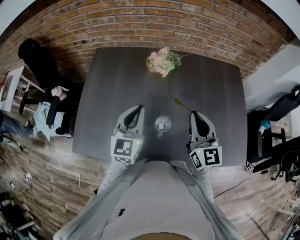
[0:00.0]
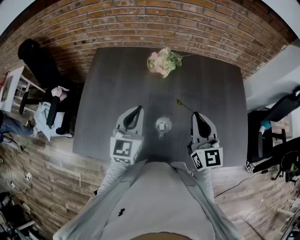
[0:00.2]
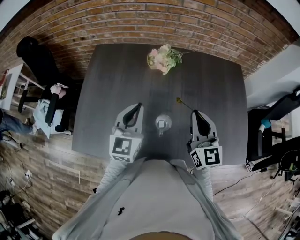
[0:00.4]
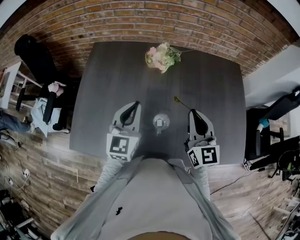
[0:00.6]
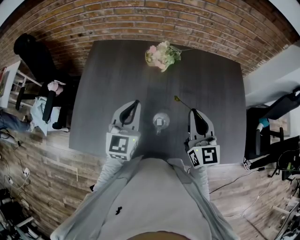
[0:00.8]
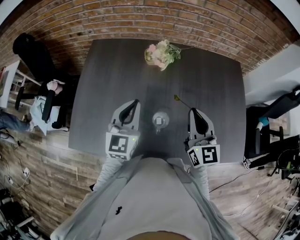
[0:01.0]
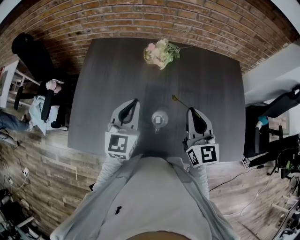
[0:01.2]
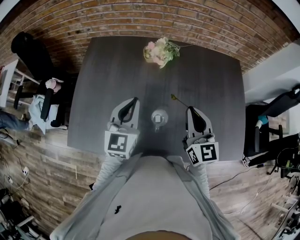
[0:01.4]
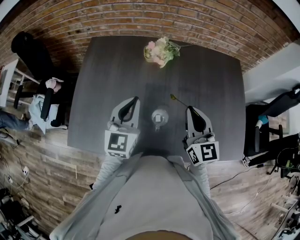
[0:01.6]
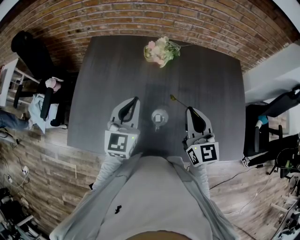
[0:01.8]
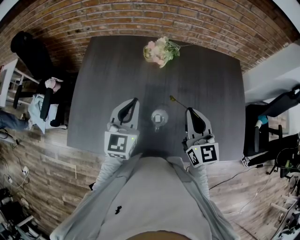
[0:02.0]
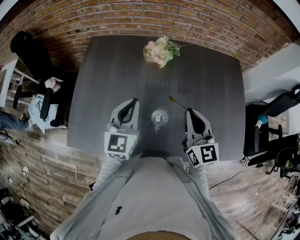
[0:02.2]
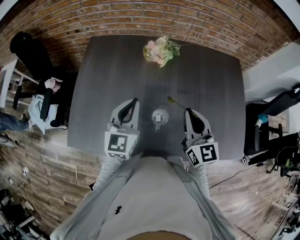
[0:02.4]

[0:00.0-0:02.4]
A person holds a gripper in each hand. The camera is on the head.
0:00.0 to 0:02.4: The grippers make only small movements.

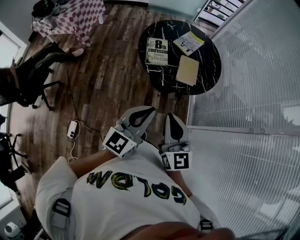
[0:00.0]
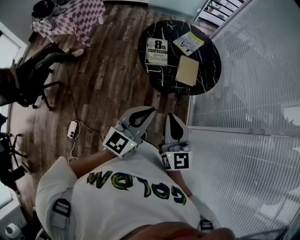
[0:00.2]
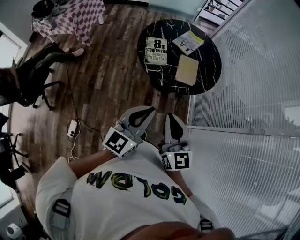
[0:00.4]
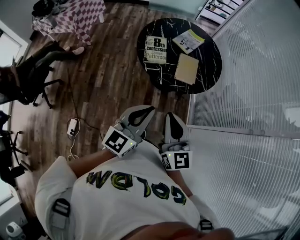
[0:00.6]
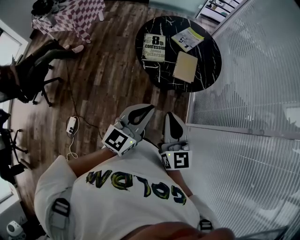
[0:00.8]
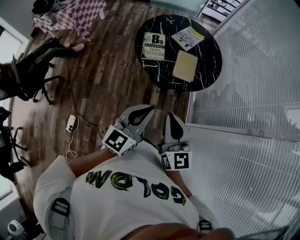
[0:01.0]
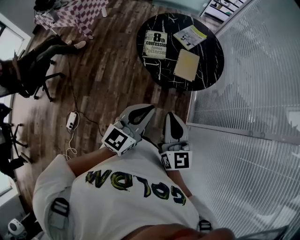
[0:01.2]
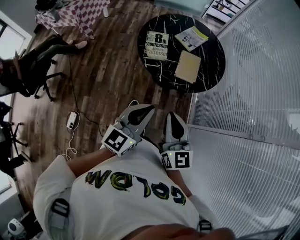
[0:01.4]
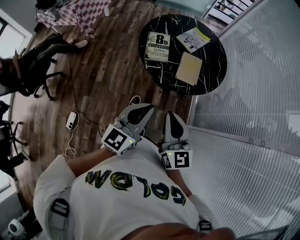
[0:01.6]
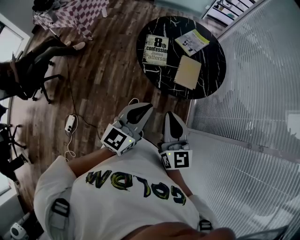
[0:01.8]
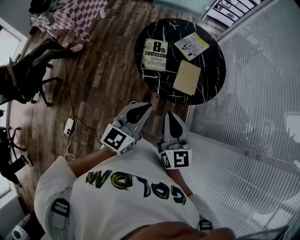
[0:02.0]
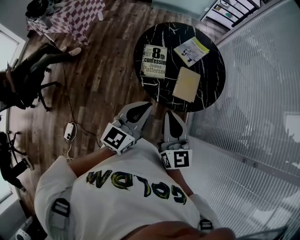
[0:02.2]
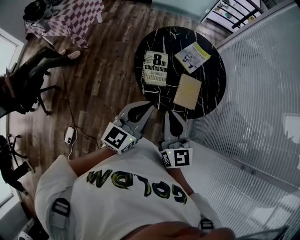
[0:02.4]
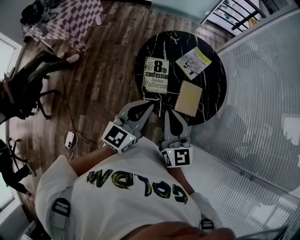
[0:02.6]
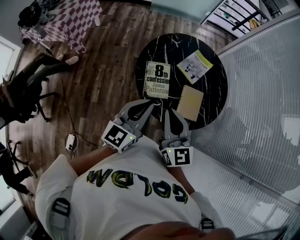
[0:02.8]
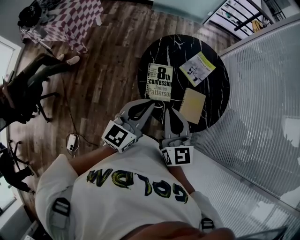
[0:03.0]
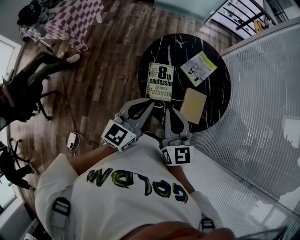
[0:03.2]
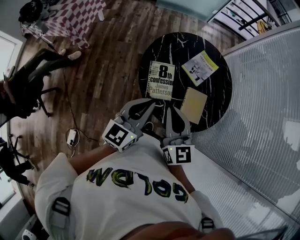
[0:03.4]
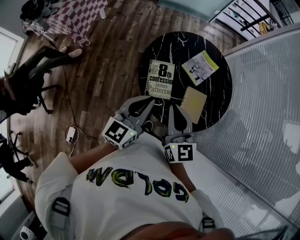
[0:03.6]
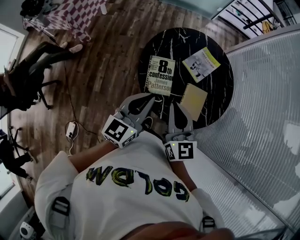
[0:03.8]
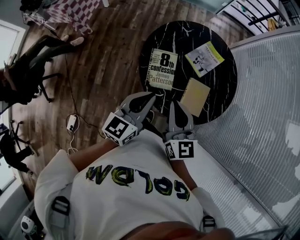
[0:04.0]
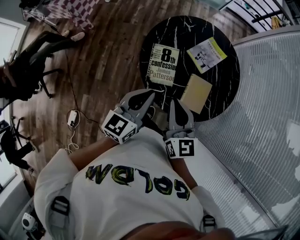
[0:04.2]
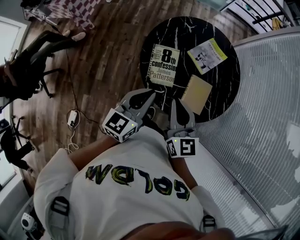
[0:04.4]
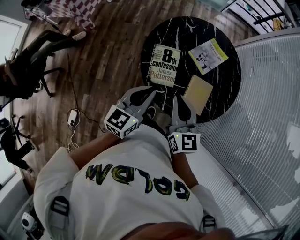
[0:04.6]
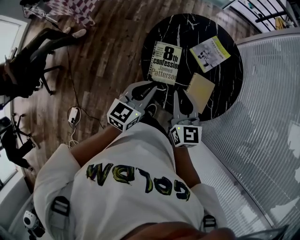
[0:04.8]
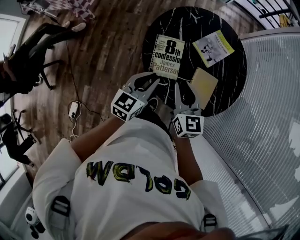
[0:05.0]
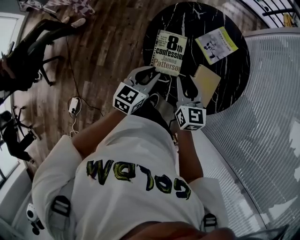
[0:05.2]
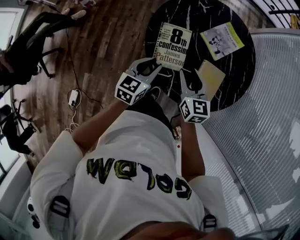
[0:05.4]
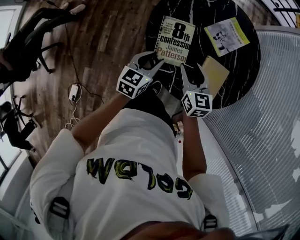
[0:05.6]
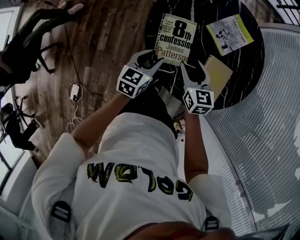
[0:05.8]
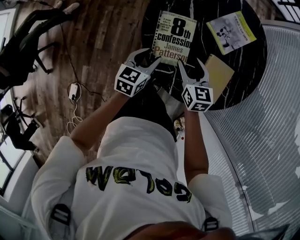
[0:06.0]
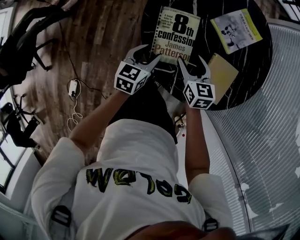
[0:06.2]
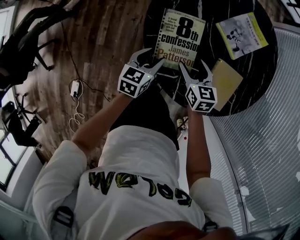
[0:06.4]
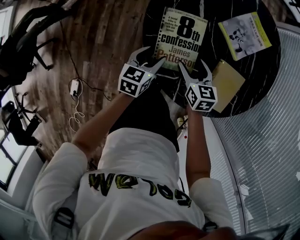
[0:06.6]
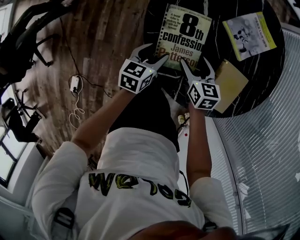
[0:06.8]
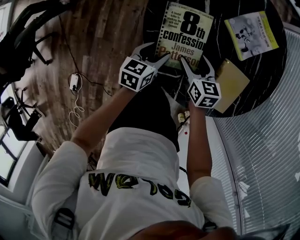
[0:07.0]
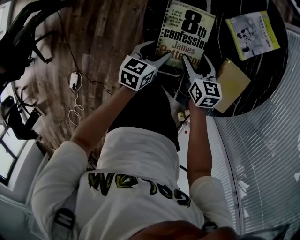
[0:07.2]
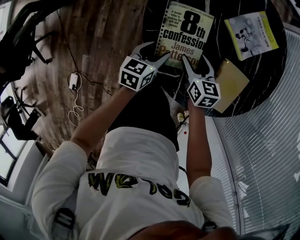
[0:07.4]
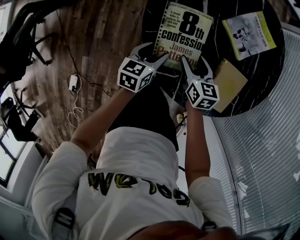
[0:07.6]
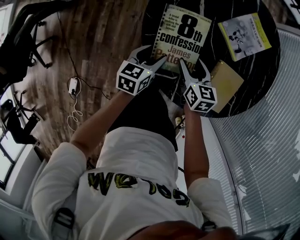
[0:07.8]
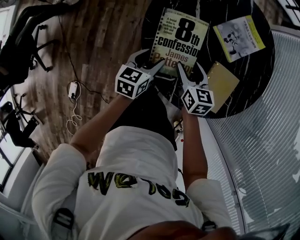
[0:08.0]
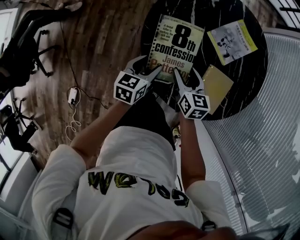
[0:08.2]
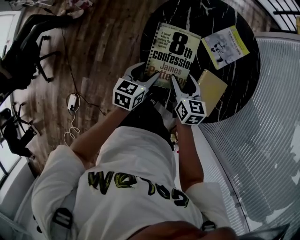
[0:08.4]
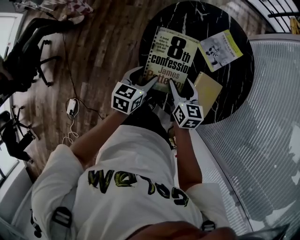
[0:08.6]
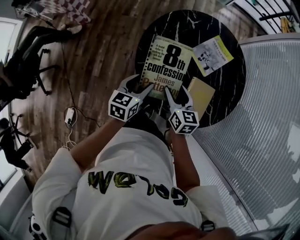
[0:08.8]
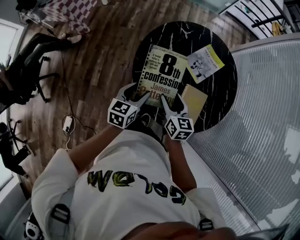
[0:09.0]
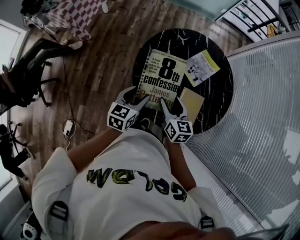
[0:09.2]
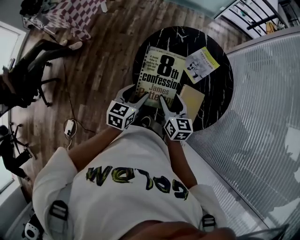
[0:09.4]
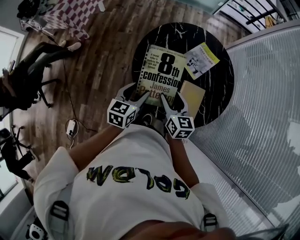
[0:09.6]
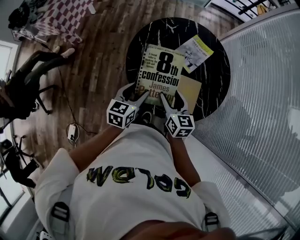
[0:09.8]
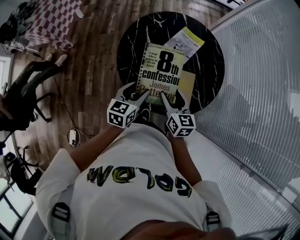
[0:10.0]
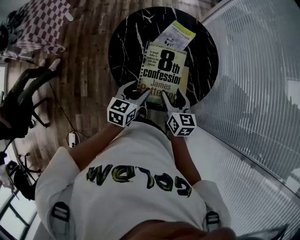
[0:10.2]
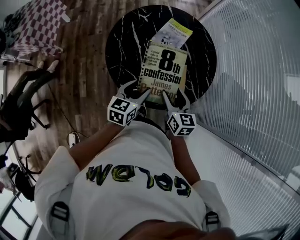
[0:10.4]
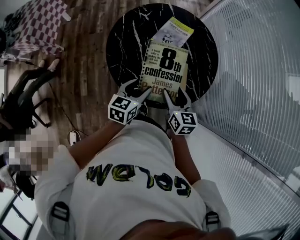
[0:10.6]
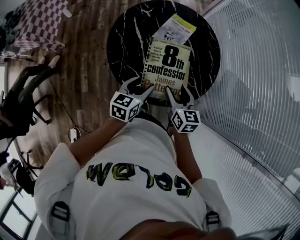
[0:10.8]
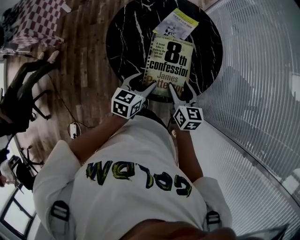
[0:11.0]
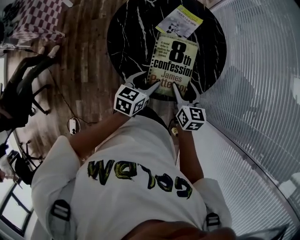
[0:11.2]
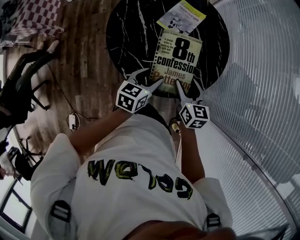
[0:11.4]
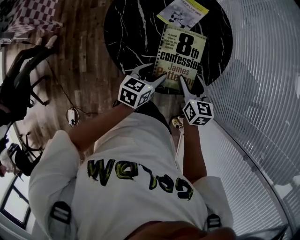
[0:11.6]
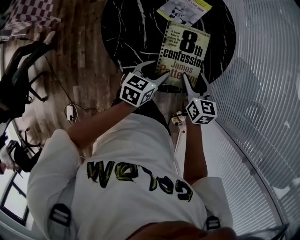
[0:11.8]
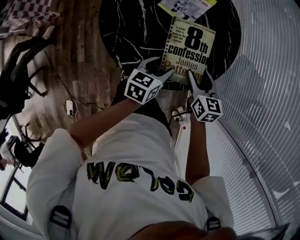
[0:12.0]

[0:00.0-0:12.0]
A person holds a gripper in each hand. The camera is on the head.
0:00.0 to 0:01.6: The left gripper ends up approximately 10 cm from where it was. Meanwhile the right gripper is displaced to the right by approximately 5 cm.
0:01.6 to 0:03.0: The grippers both shift forward and to the left by some 35 cm.
0:03.0 to 0:04.4: The left gripper moves downward, some 5 cm. The right gripper changes place by some 5 cm.
0:04.4 to 0:06.0: The right gripper travels downward and forward by roughly 30 cm, rotates roughly 20 degrees, and opens. The left gripper heads downward, covering about 25 cm, rotates approximately 20 degrees, and opens up.
0:06.0 to 0:07.6: The two grippers go approximately 10 cm downward.
0:07.6 to 0:09.0: The grippers both shift upward by about 20 cm.
0:09.0 to 0:10.4: The left gripper travels to the right by roughly 10 cm; the right gripper heads to the right and backward, covering about 15 cm.
0:10.4 to 0:12.0: The right gripper travels downward, to the right and forward by some 15 cm. The left gripper shifts some 15 cm downward and to the right.

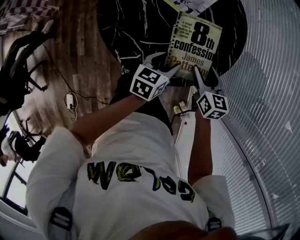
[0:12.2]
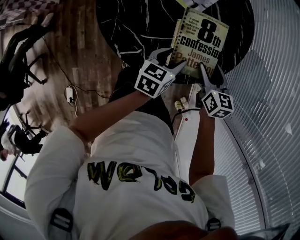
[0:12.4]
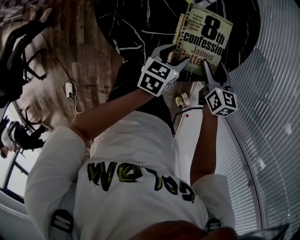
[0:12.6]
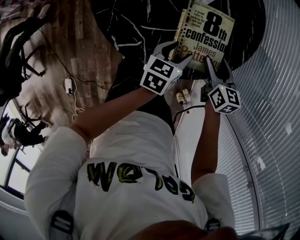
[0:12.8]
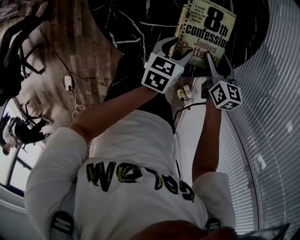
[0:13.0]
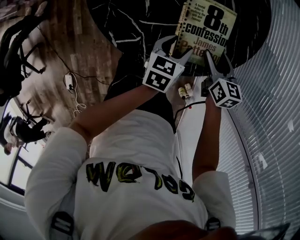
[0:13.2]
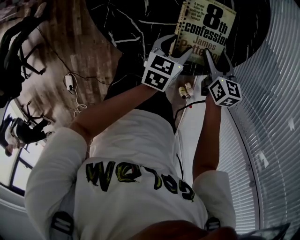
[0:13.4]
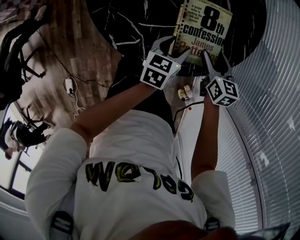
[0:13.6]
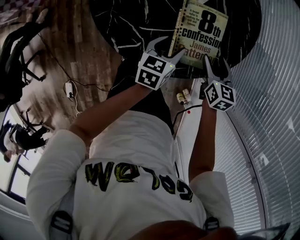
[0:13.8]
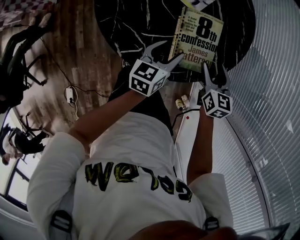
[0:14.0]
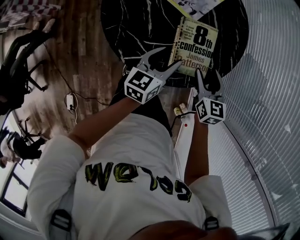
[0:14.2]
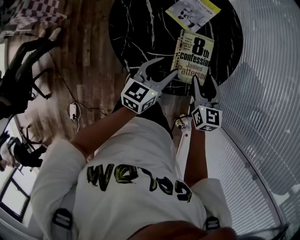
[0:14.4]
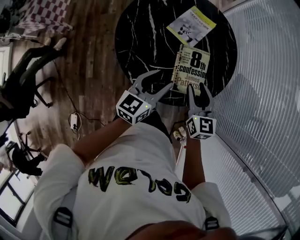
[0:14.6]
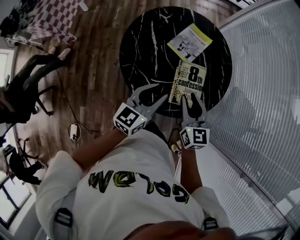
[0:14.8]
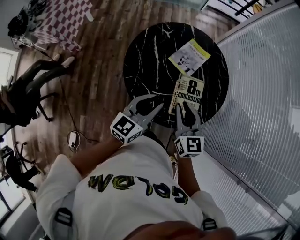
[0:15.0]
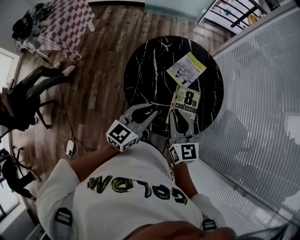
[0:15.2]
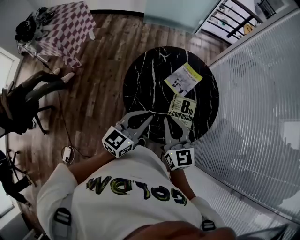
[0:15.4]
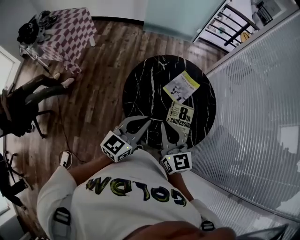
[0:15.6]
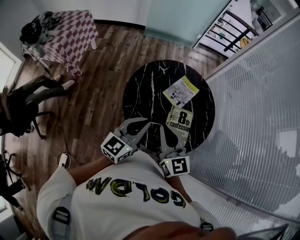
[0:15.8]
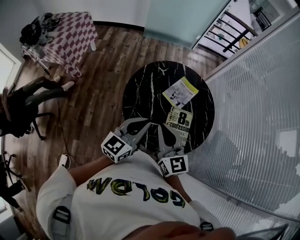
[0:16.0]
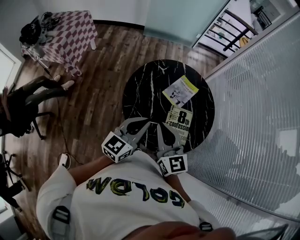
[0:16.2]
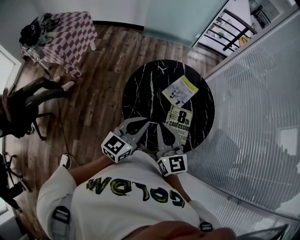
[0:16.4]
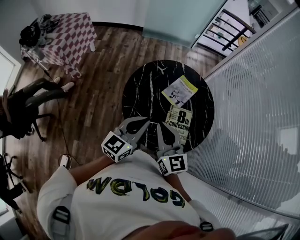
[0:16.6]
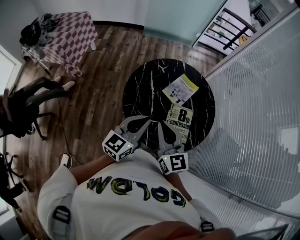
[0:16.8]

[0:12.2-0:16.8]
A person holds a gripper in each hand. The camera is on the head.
0:12.2 to 0:13.8: Both grippers travel together downward, roughly 5 cm.
0:13.8 to 0:15.2: Both grippers travel together upward and to the left, approximately 35 cm. The left gripper turns by roughly 30 degrees, and closes up. Meanwhile the right gripper tips its fingers upward by some 30 degrees, and closes its fingers.
0:15.2 to 0:16.8: The right gripper moves upward, approximately 5 cm.

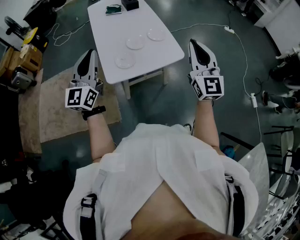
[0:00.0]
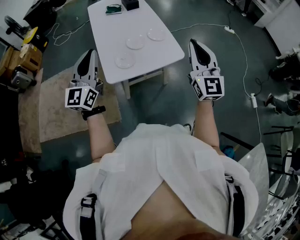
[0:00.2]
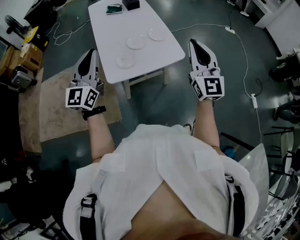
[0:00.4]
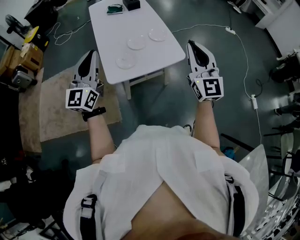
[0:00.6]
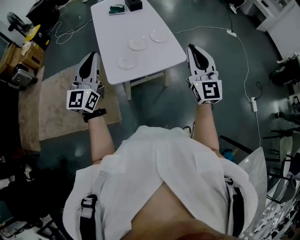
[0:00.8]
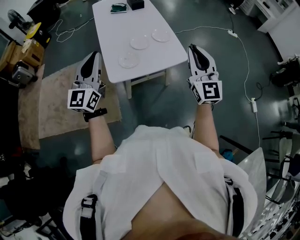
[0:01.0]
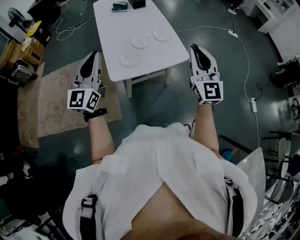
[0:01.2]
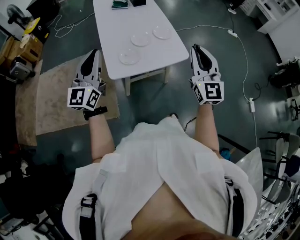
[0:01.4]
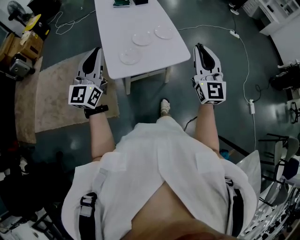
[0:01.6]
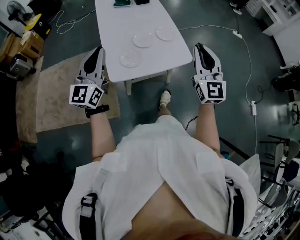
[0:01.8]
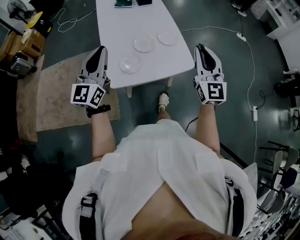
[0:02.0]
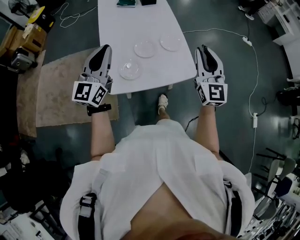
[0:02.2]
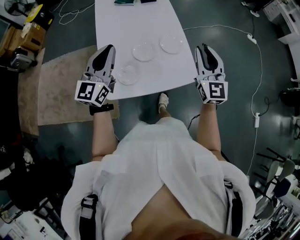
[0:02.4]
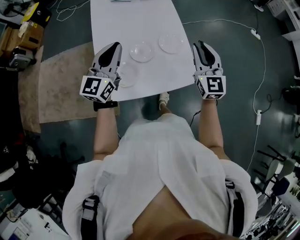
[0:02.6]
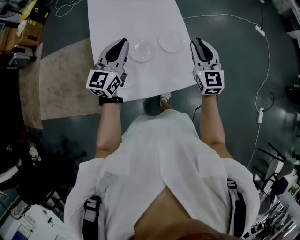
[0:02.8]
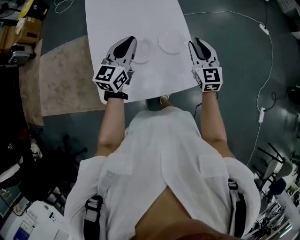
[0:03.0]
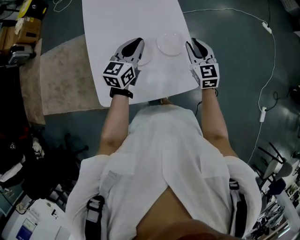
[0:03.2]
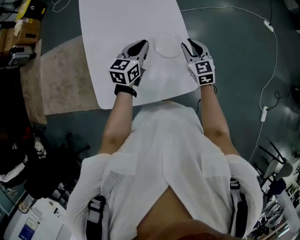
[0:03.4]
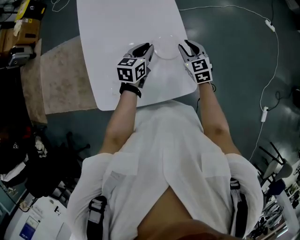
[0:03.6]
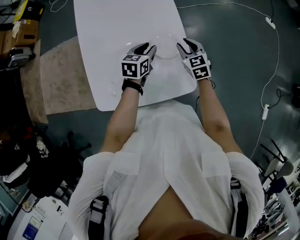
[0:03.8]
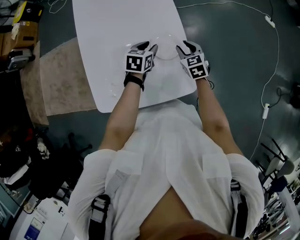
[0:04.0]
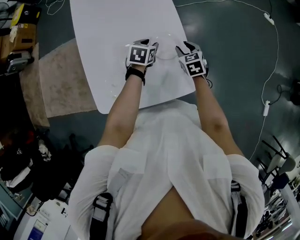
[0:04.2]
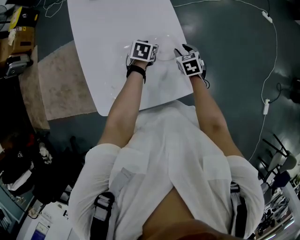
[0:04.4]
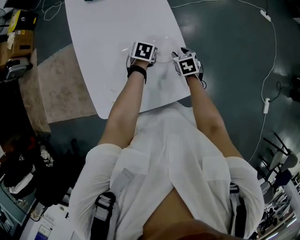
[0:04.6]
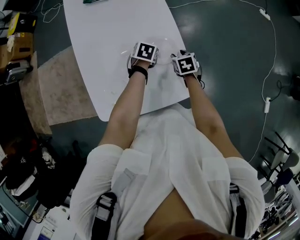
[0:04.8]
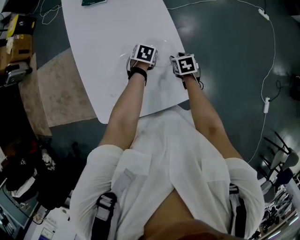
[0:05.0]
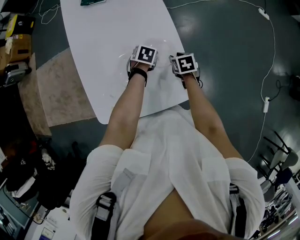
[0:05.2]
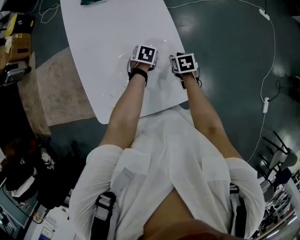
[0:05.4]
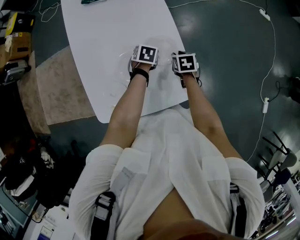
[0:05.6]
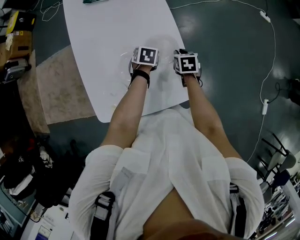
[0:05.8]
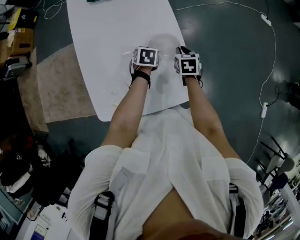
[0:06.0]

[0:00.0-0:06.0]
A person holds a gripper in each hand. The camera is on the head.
0:00.0 to 0:01.6: There are only small adjustments of the grippers.
0:01.6 to 0:03.0: The left gripper heads forward, downward and to the right, covering some 40 cm, and swivels some 30 degrees, while the right gripper goes about 40 cm forward and downward, and turns by about 30 degrees.
0:03.0 to 0:04.4: The right gripper goes about 20 cm downward, and points its fingers roughly 40 degrees further downward, while the left gripper goes some 25 cm downward and to the right, tilts its fingers approximately 50 degrees downward, and opens up.
0:04.4 to 0:06.0: The right gripper closes its fingers, while the left gripper closes its fingers.
